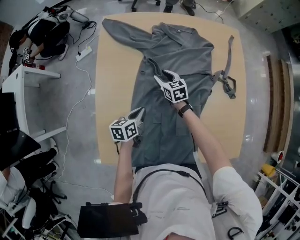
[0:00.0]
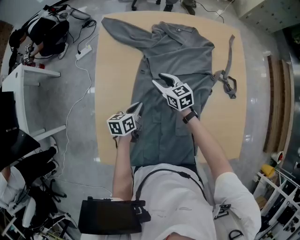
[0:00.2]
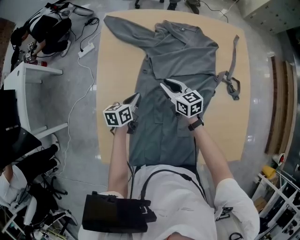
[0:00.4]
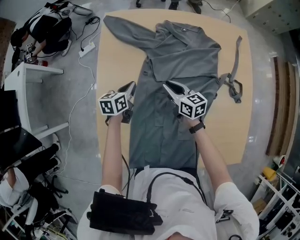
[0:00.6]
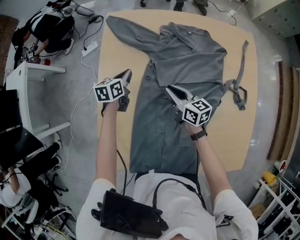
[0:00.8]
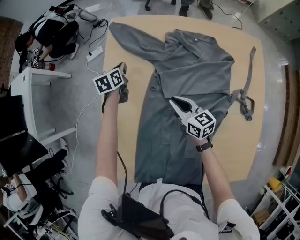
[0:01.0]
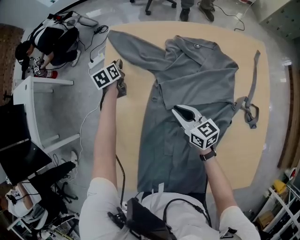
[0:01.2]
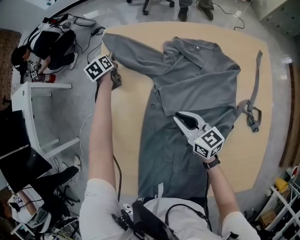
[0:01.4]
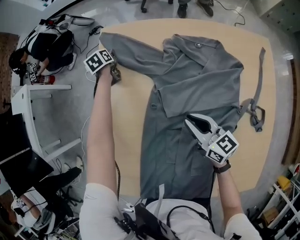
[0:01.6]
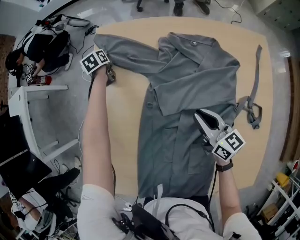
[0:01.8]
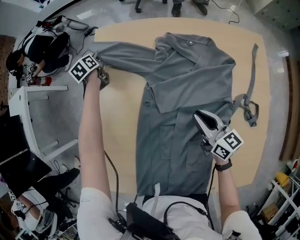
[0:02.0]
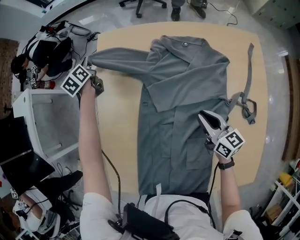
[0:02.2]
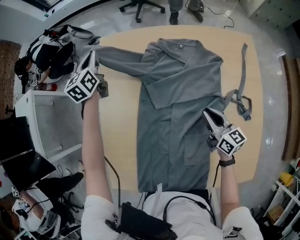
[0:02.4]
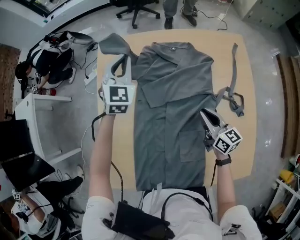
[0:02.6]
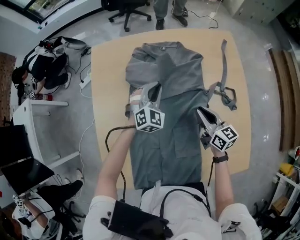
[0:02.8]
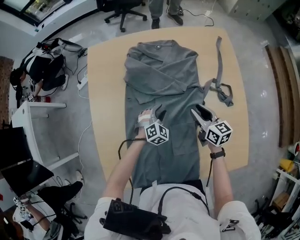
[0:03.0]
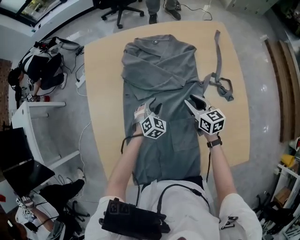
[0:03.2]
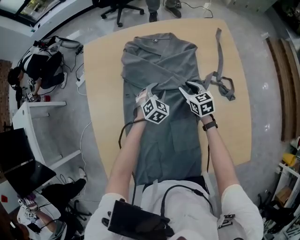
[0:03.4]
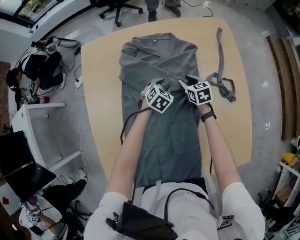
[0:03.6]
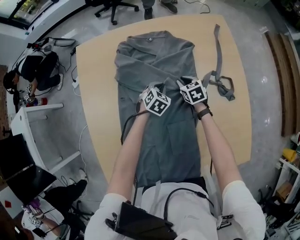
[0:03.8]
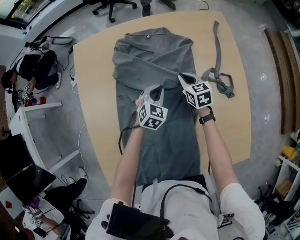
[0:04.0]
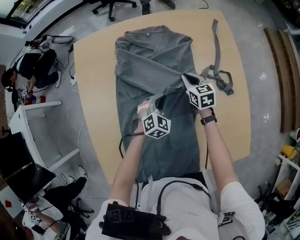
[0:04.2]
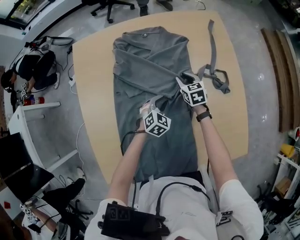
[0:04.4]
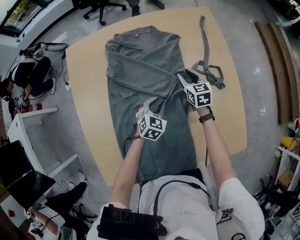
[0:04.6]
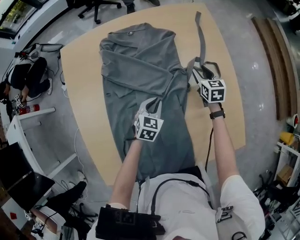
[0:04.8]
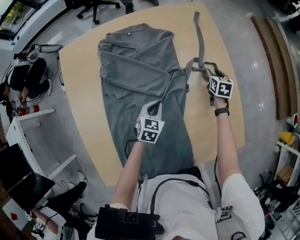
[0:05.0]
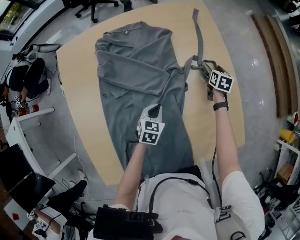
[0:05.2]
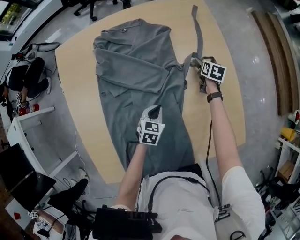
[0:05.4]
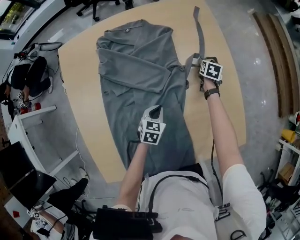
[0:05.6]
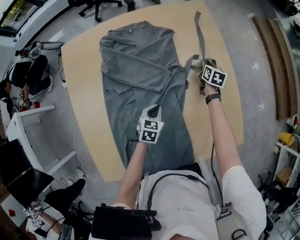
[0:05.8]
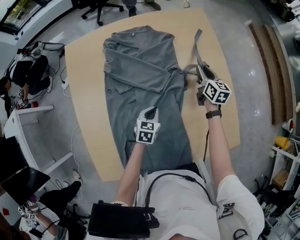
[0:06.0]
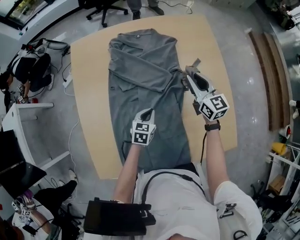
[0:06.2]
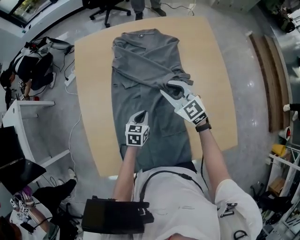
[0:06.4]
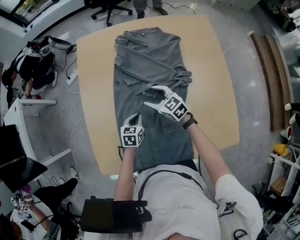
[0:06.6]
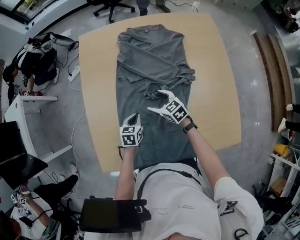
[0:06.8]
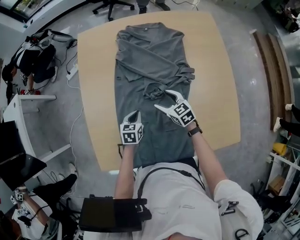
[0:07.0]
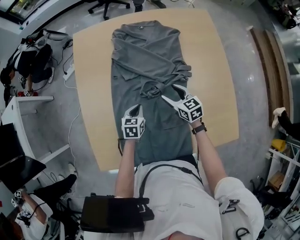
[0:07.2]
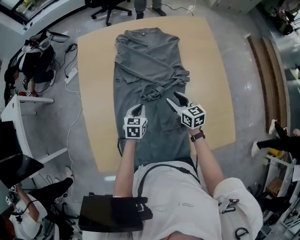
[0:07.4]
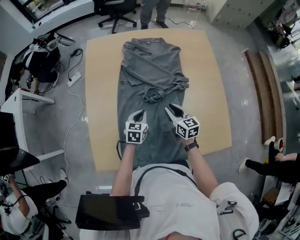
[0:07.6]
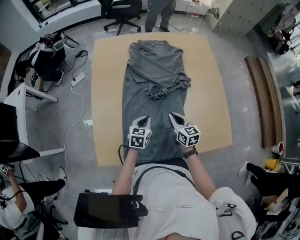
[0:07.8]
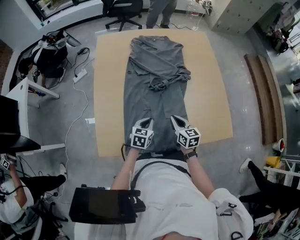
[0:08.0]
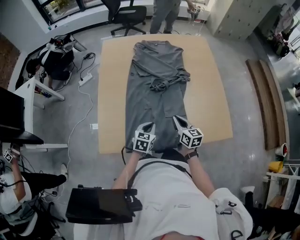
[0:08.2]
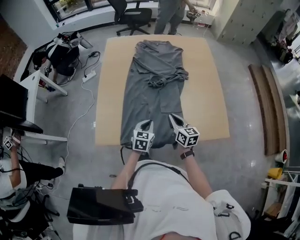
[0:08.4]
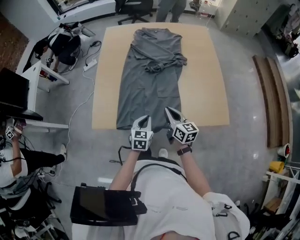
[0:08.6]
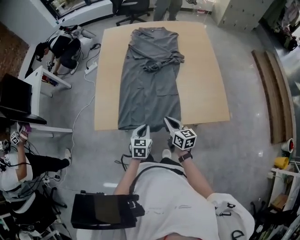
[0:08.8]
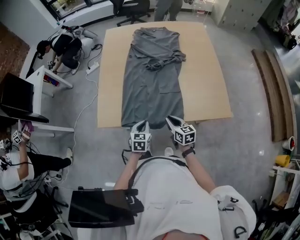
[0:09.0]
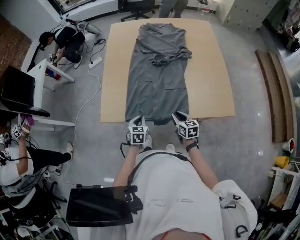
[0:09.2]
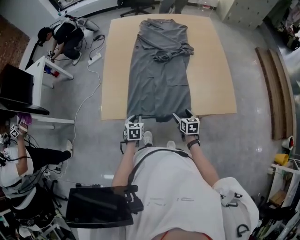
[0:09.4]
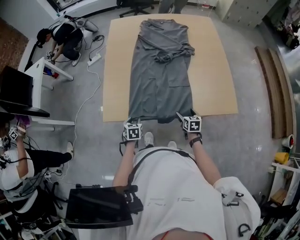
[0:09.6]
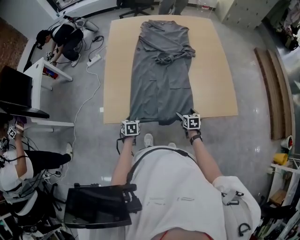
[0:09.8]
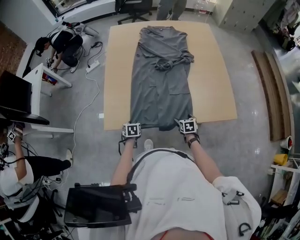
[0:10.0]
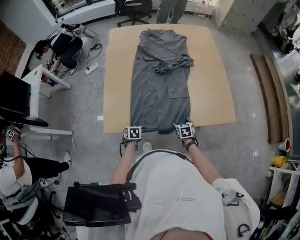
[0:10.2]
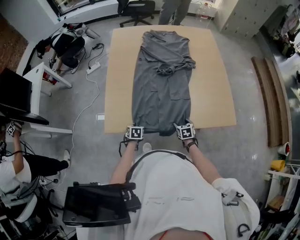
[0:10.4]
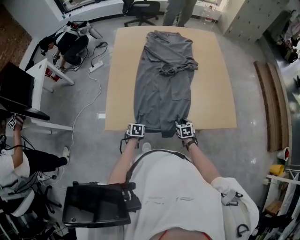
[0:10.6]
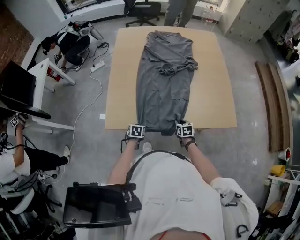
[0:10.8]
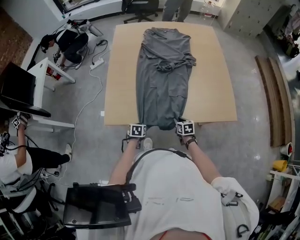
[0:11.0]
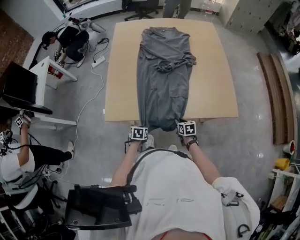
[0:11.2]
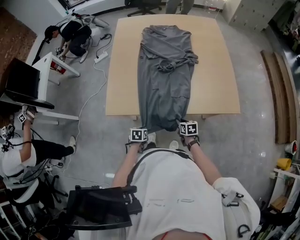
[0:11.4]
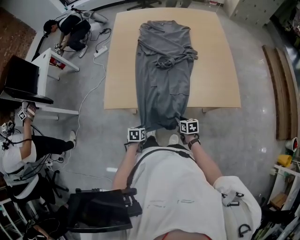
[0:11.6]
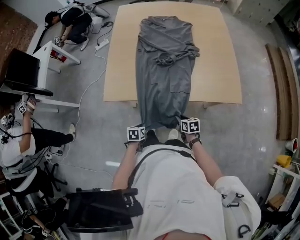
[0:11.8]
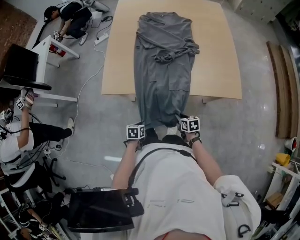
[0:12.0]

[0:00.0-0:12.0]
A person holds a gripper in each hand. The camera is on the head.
0:00.0 to 0:01.6: The left gripper moves approximately 50 cm, rotates roughly 40 degrees, and opens its fingers; the right gripper heads upward, covering approximately 10 cm, rotates roughly 30 degrees, and closes up.
0:01.6 to 0:03.0: The left gripper moves some 30 cm upward and comes back, twists approximately 80 degrees clockwise, seen from behind, and closes and opens again. Meanwhile the right gripper changes place by approximately 20 cm, and swivels about 20 degrees.
0:03.0 to 0:04.4: The right gripper travels downward and forward by about 15 cm, and changes its angle by about 30 degrees. Meanwhile the left gripper moves to the right, about 5 cm, moves some 10 cm forward and comes back, and closes, then opens again.
0:04.4 to 0:06.0: The right gripper moves up and down over roughly 15 cm, changing direction 2 times, changes its angle by some 30 degrees, and opens, then closes once more; the left gripper moves approximately 10 cm, swivels about 30 degrees, and closes up.
0:06.0 to 0:07.6: The right gripper moves up and down over about 15 cm, changing direction 2 times, rotates roughly 30 degrees, and opens, then closes once more; the left gripper changes place by approximately 15 cm.
0:07.6 to 0:09.0: The two grippers go approximately 30 cm backward.
0:09.0 to 0:10.4: The left gripper travels downward and to the left by about 20 cm, rotates roughly 20 degrees, and opens. Meanwhile the right gripper goes approximately 15 cm downward, turns by some 30 degrees, and opens up.
0:10.4 to 0:12.0: The grippers both shift backward by approximately 20 cm. The right gripper changes its angle by about 30 degrees, and closes its fingers.

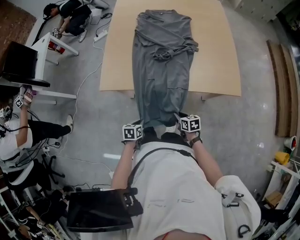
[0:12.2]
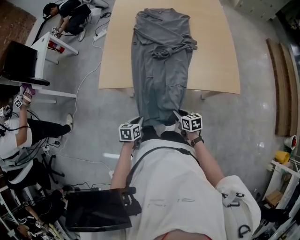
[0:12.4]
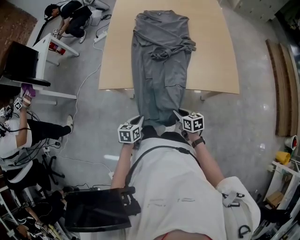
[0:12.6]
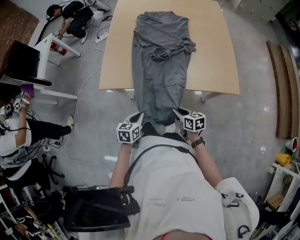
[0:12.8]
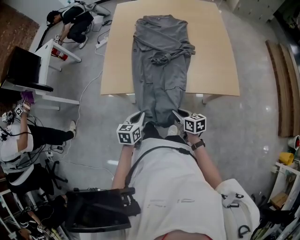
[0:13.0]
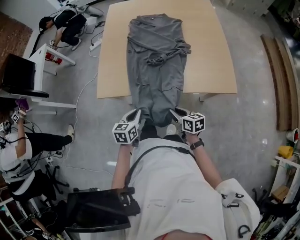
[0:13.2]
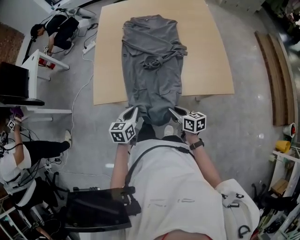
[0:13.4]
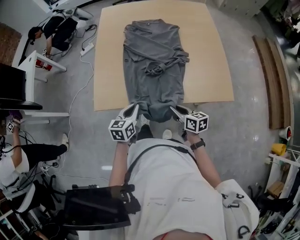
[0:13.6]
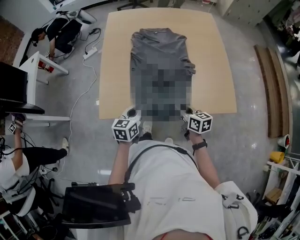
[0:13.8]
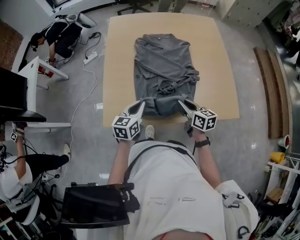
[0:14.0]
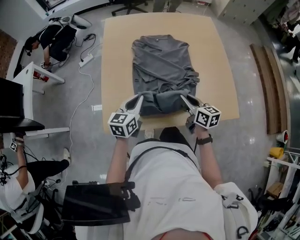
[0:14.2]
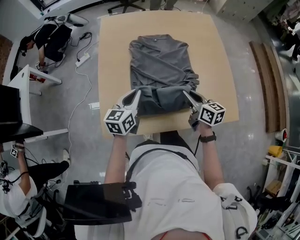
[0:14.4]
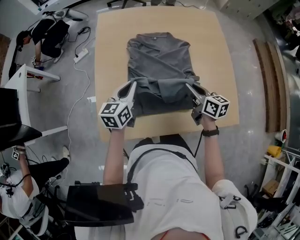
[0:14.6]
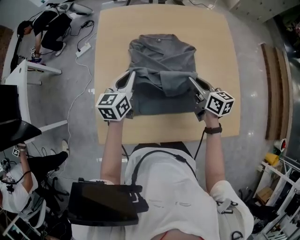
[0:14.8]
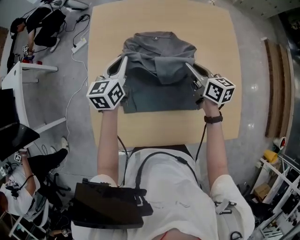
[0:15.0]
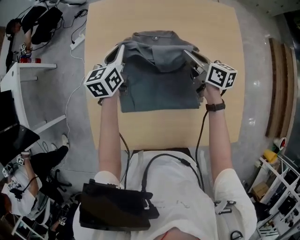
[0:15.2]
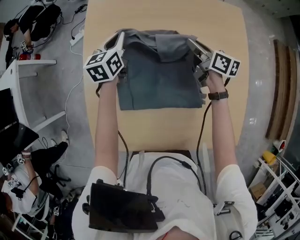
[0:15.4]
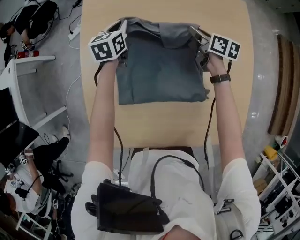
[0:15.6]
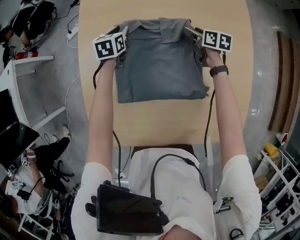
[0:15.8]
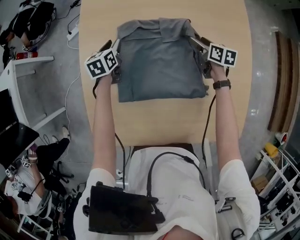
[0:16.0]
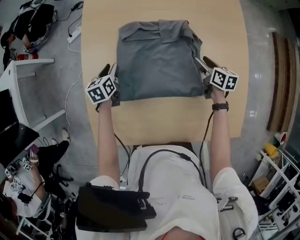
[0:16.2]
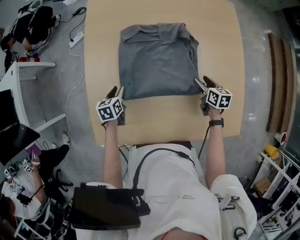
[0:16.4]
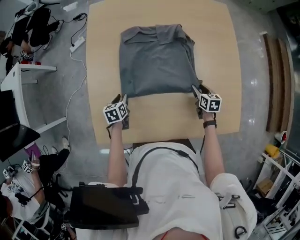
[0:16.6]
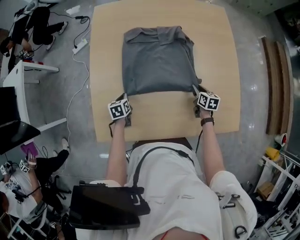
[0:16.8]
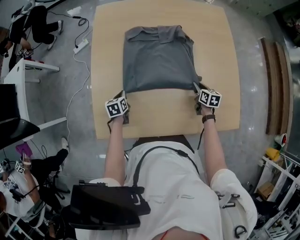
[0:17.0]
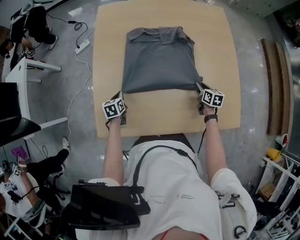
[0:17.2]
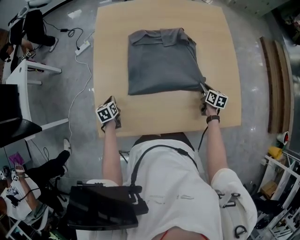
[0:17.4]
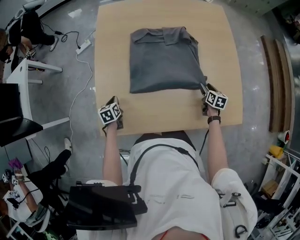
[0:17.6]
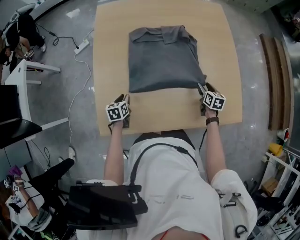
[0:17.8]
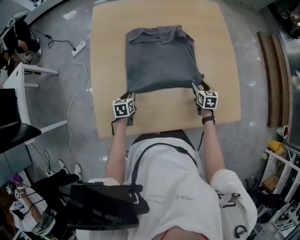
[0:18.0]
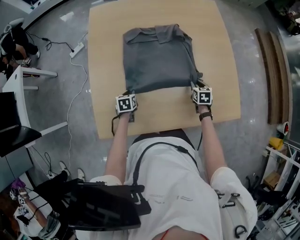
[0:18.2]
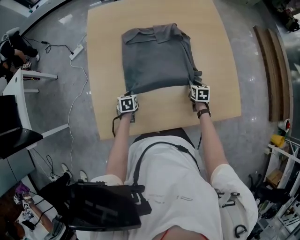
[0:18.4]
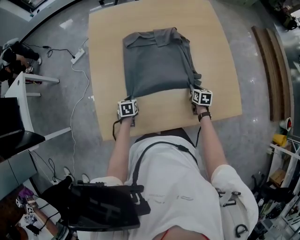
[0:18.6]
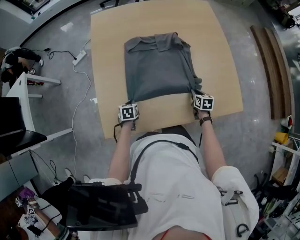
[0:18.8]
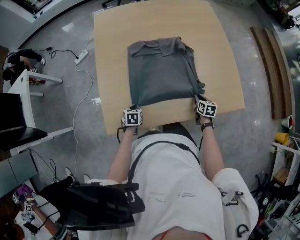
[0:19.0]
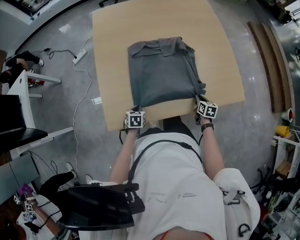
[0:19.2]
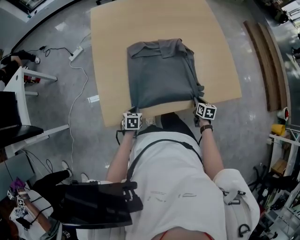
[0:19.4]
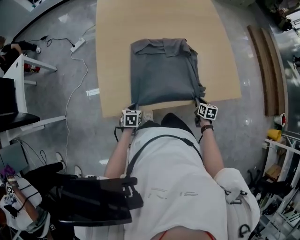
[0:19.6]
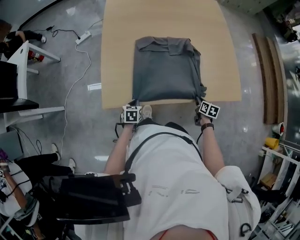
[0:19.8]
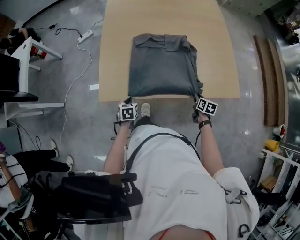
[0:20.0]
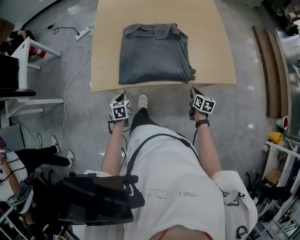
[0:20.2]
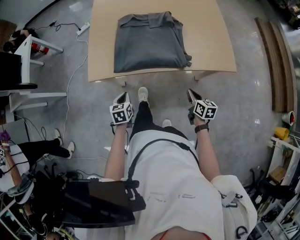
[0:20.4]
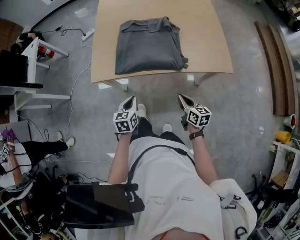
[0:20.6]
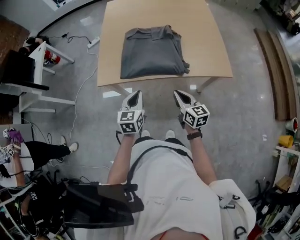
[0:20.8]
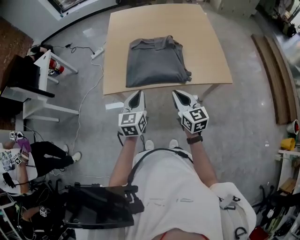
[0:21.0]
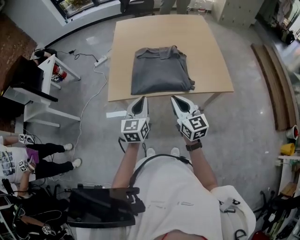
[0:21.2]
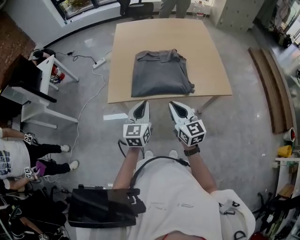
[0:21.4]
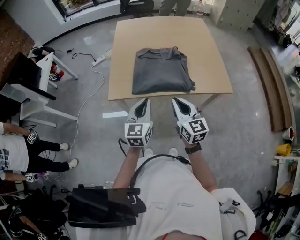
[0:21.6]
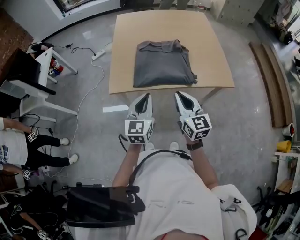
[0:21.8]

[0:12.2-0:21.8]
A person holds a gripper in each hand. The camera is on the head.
0:12.2 to 0:13.8: Both grippers travel together forward and upward, roughly 30 cm. The left gripper swivels about 30 degrees.
0:13.8 to 0:15.4: The two grippers travel together, forward, about 50 cm.
0:15.4 to 0:17.0: The grippers both shift backward and downward by approximately 35 cm. The right gripper rotates some 30 degrees, and opens, then closes once more. Meanwhile the left gripper changes its angle by some 30 degrees, and opens, then closes once more.
0:17.0 to 0:18.6: The left gripper moves roughly 10 cm to the left and comes back, and opens and closes again, while the right gripper travels backward by about 5 cm, and opens, then closes once more.
0:18.6 to 0:20.2: Both grippers travel together backward, about 25 cm.
0:20.2 to 0:21.8: The left gripper goes roughly 30 cm upward, and tilts its fingers roughly 40 degrees upward, while the right gripper shifts approximately 35 cm upward and to the left, and points its fingers about 40 degrees further upward.

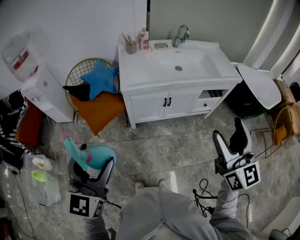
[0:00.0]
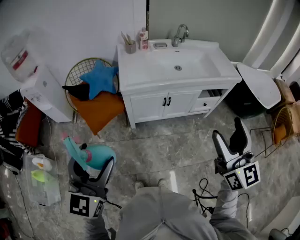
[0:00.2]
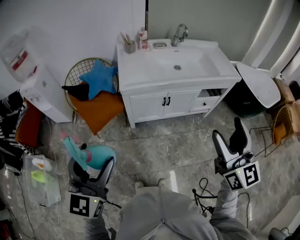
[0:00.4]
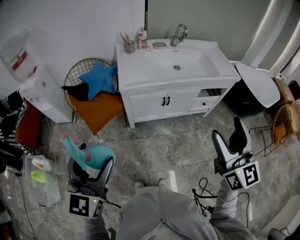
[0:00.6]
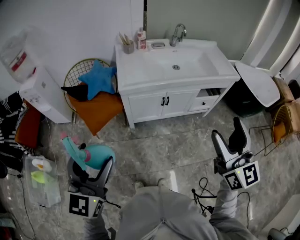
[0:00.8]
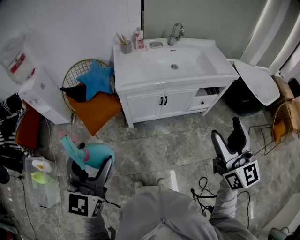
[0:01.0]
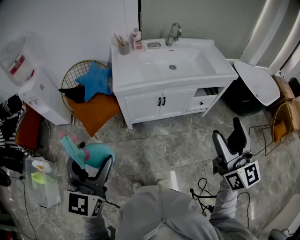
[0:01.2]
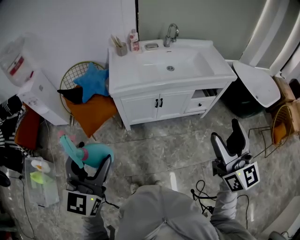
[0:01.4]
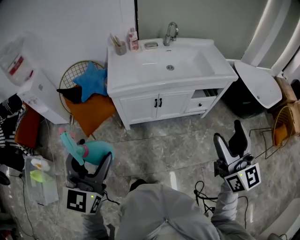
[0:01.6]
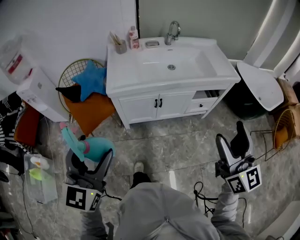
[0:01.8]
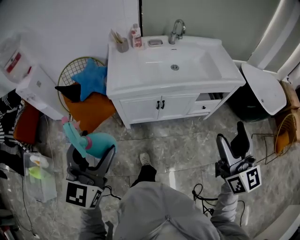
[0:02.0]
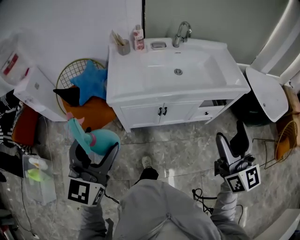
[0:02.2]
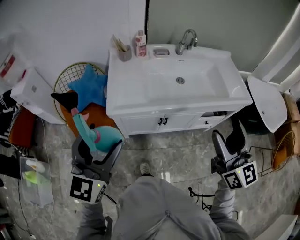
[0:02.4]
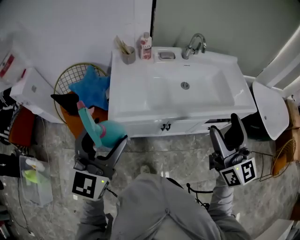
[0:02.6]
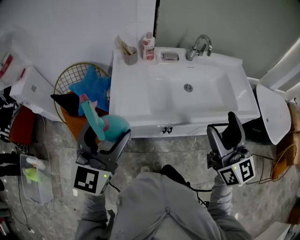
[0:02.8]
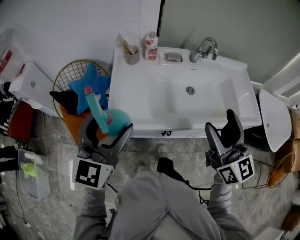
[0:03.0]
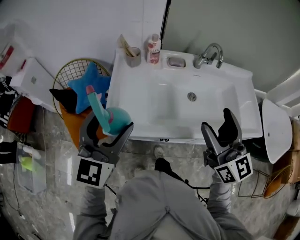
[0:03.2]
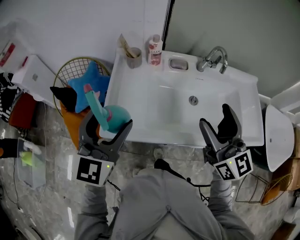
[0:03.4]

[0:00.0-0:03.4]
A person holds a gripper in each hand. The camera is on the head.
0:00.0 to 0:01.6: The two grippers go some 10 cm to the right.
0:01.6 to 0:03.4: The two grippers travel together, forward, approximately 50 cm. The right gripper changes its angle by some 20 degrees.
